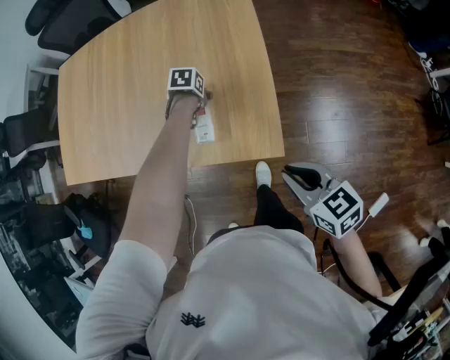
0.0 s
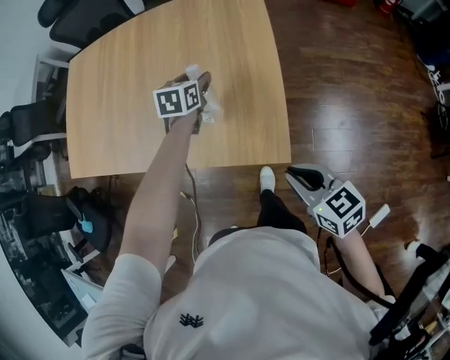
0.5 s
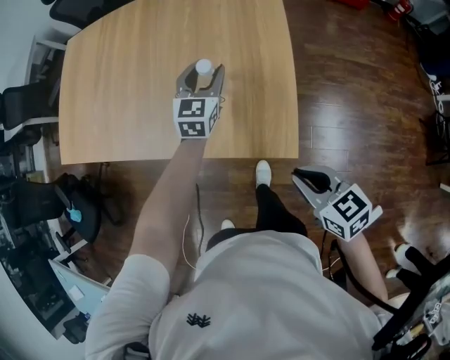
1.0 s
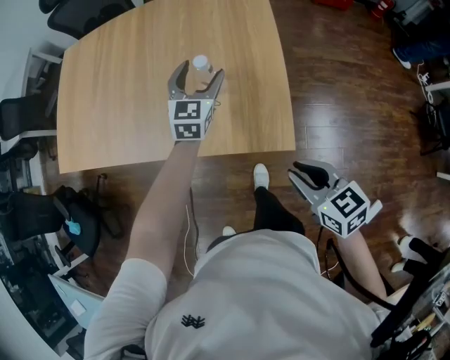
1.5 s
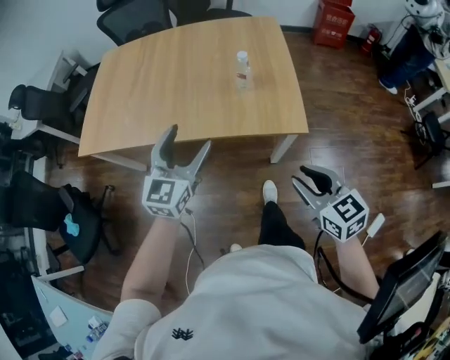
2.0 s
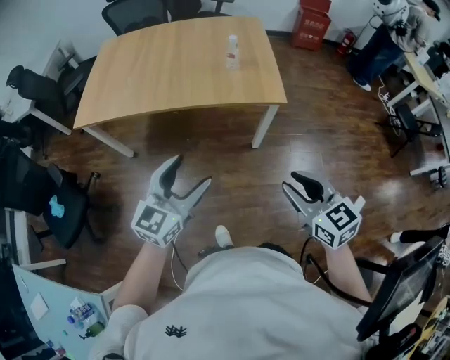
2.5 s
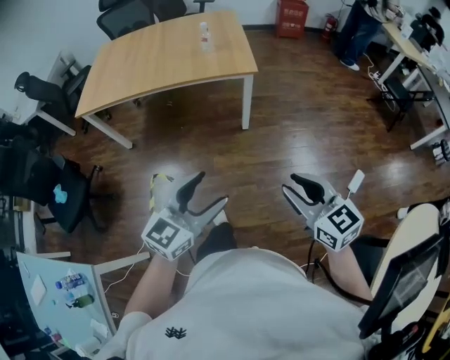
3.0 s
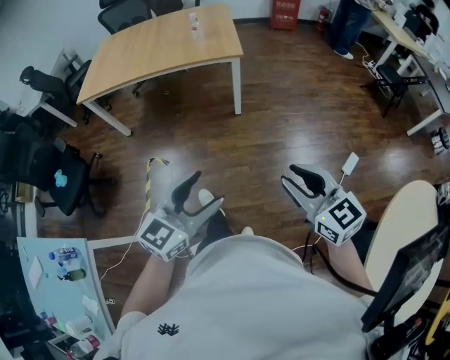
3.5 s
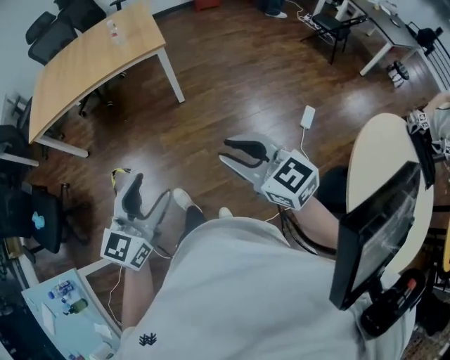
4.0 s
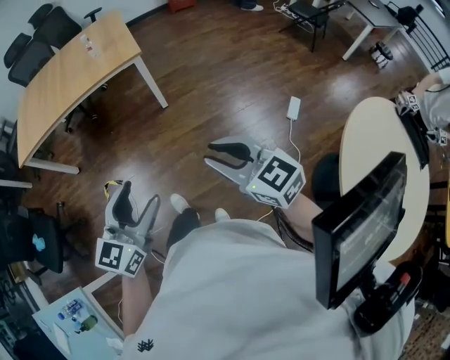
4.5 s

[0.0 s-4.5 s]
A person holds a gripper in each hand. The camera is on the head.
0.0 to 2.0 s: The left gripper changes place by approximately 40 cm, and tips its fingers upward by roughly 70 degrees. The right gripper moves approximately 15 cm, and opens up.
2.0 to 4.5 s: The pair of grippers is taken backward, roughly 50 cm. The left gripper rotates about 30 degrees.

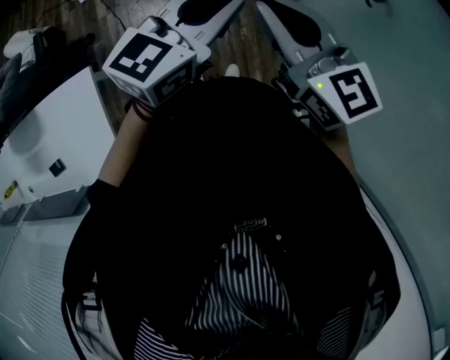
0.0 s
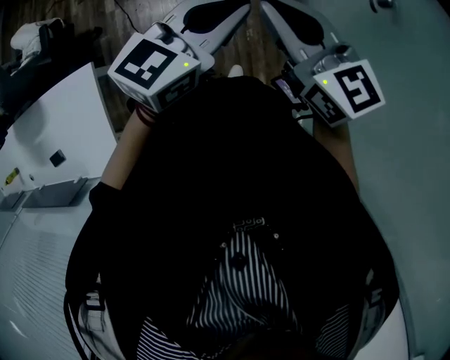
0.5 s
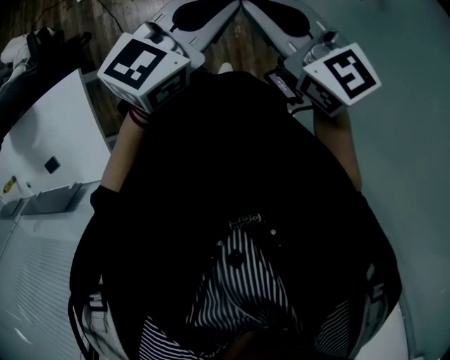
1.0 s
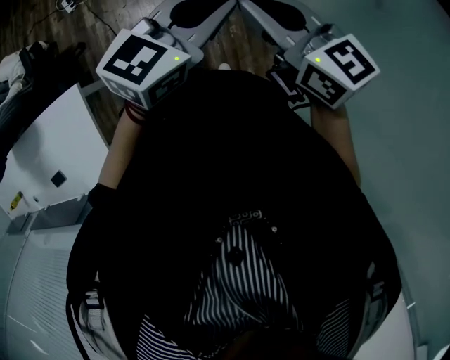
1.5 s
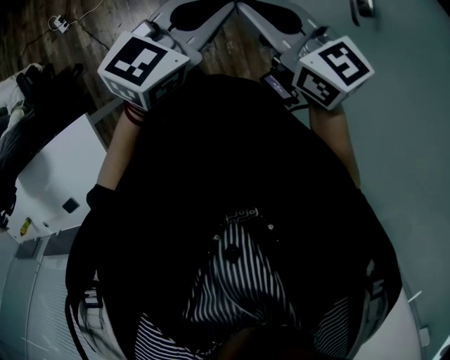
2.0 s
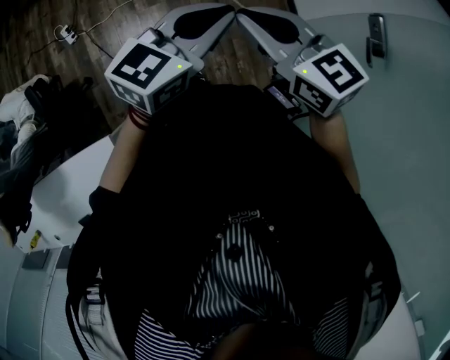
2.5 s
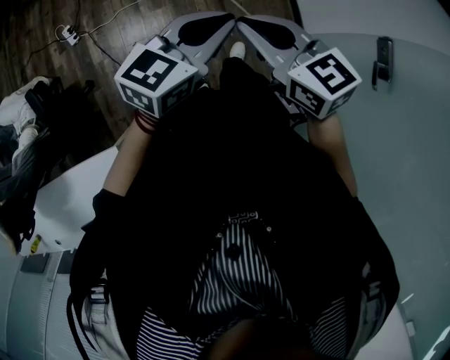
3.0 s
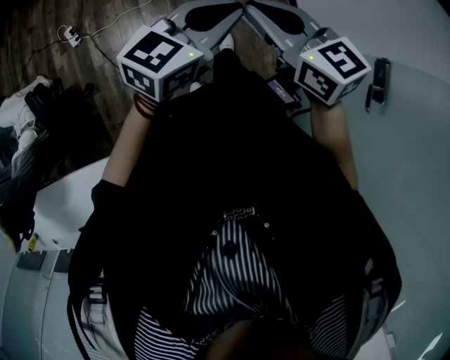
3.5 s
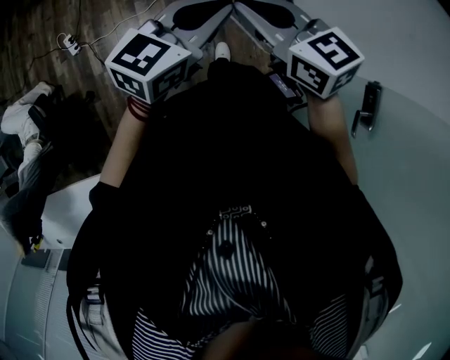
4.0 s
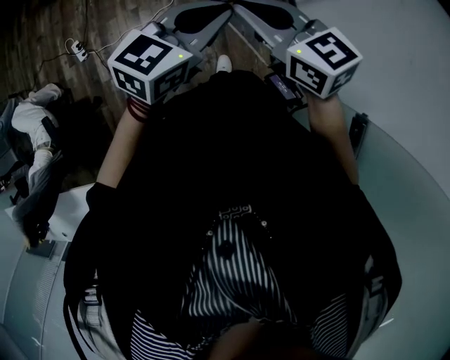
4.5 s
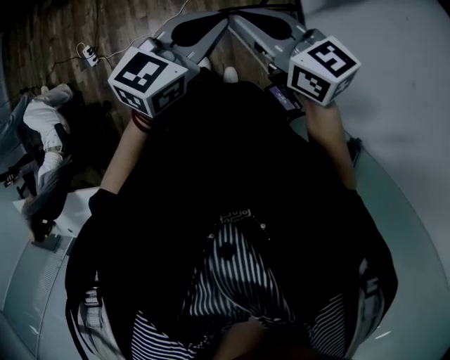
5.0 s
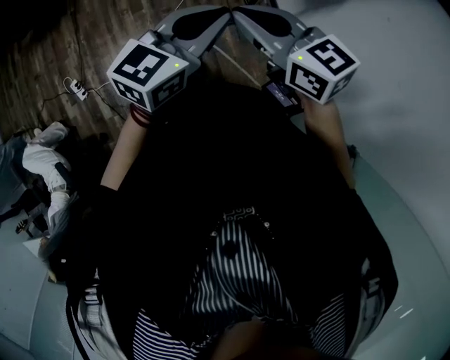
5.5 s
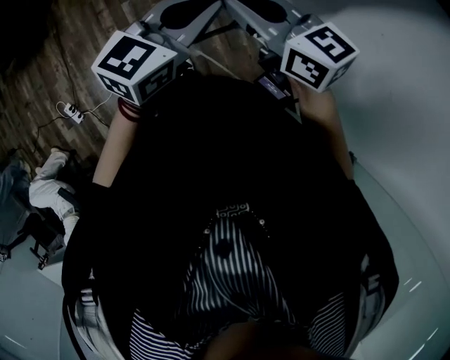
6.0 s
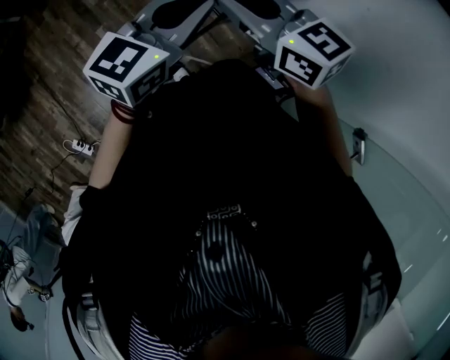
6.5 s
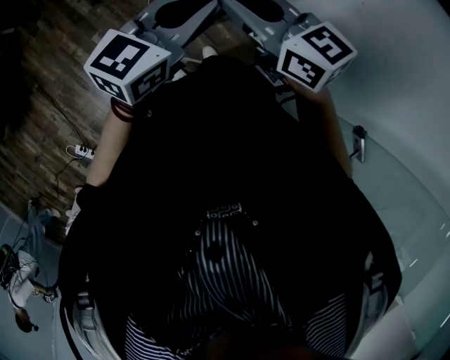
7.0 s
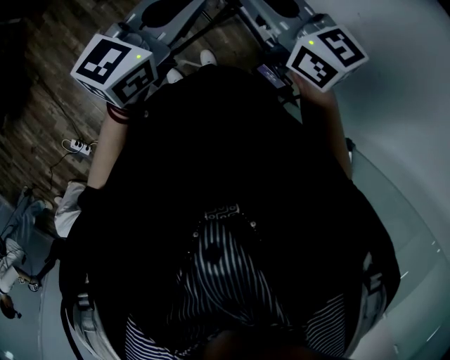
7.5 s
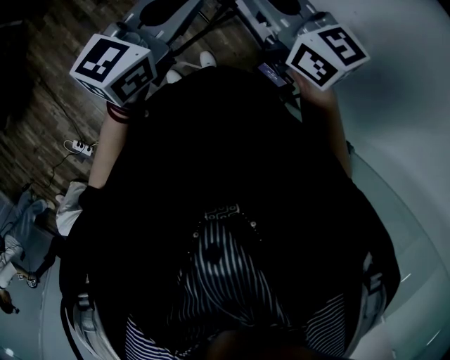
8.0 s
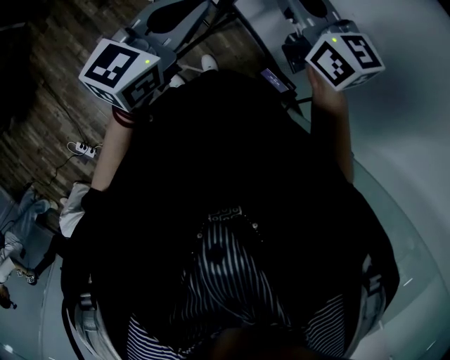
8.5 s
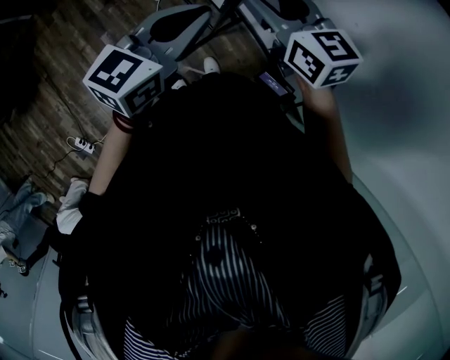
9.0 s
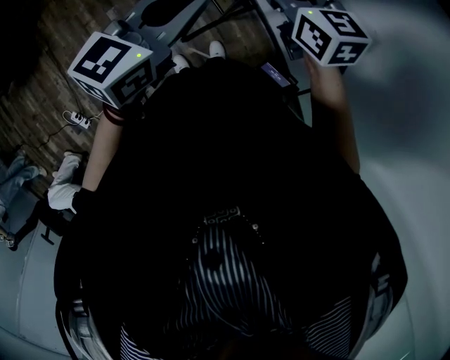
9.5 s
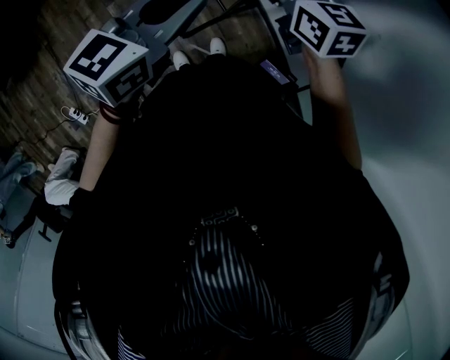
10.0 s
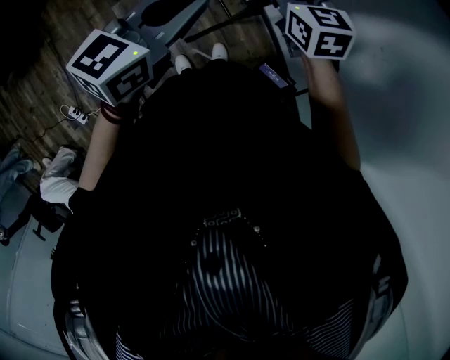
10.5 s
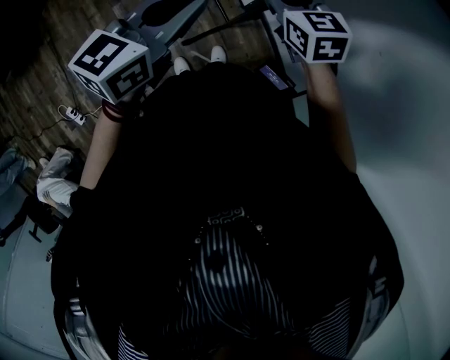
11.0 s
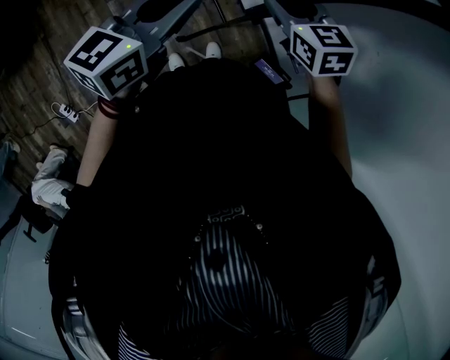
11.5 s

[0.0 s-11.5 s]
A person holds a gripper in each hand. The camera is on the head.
0.0 to 2.0 s: The grippers make only small movements.
2.0 to 4.0 s: The grippers both shift downward by some 5 cm.
4.0 to 6.0 s: Both grippers travel together upward, roughly 10 cm. The left gripper swivels roughly 20 degrees.
6.0 to 7.5 s: The left gripper is displaced backward and to the right by roughly 10 cm. Meanwhile the right gripper shifts roughly 15 cm to the right and backward, and swivels some 20 degrees.
7.5 to 9.5 s: The left gripper changes place by roughly 5 cm. The right gripper changes place by some 5 cm, and opens.
9.5 to 11.5 s: The right gripper goes roughly 10 cm downward. Meanwhile the left gripper changes place by approximately 5 cm.

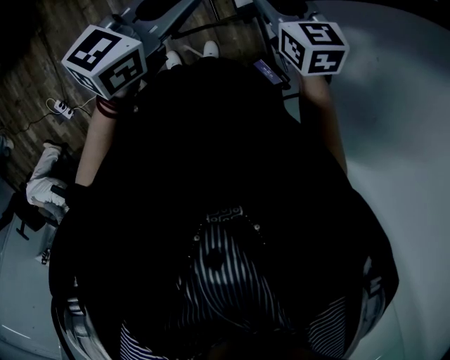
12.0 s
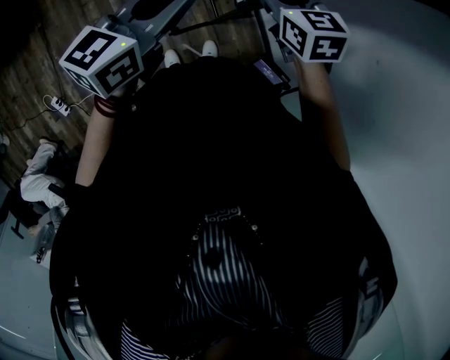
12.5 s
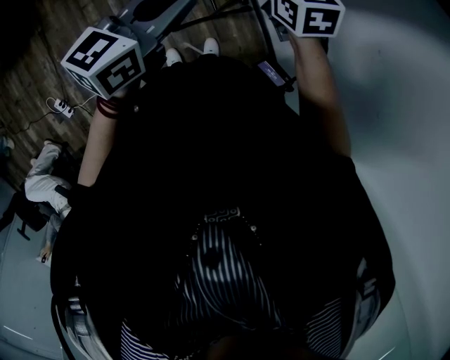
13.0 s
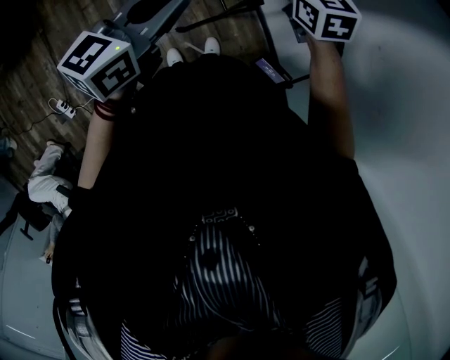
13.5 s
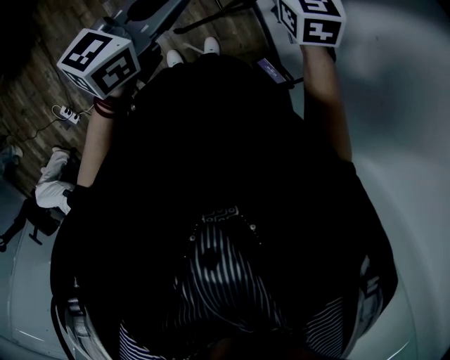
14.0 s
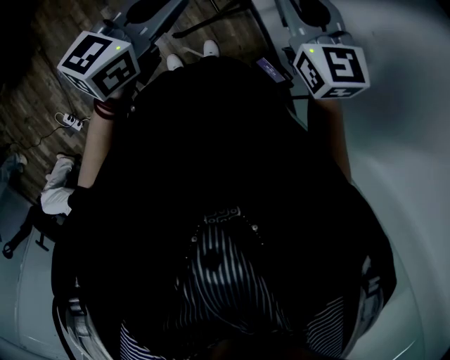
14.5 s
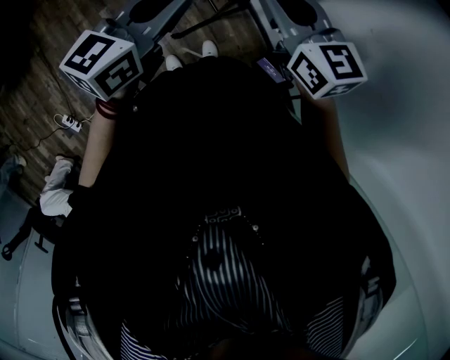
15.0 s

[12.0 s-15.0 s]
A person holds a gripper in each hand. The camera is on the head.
12.0 to 13.5 s: The right gripper shifts approximately 5 cm forward.
13.5 to 15.0 s: The right gripper moves backward and upward, some 15 cm.

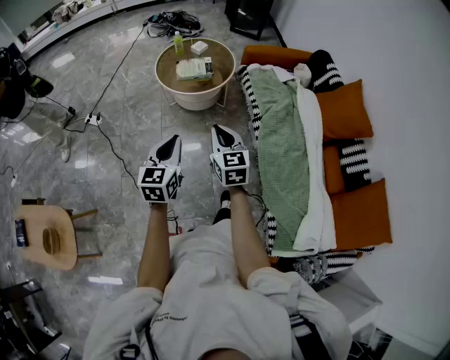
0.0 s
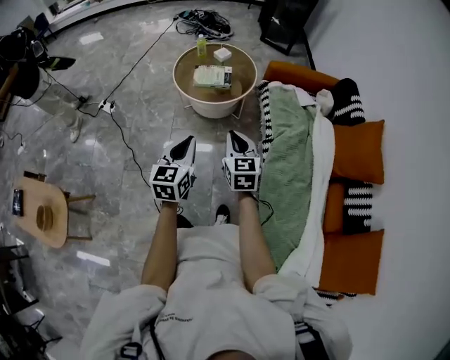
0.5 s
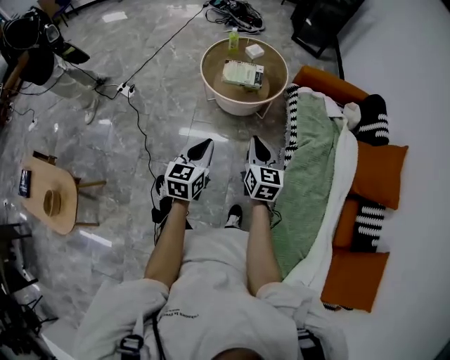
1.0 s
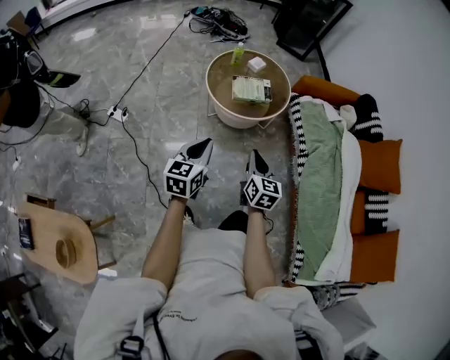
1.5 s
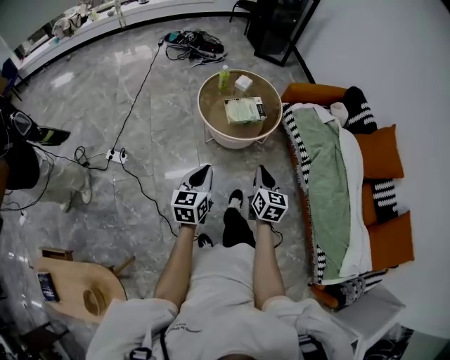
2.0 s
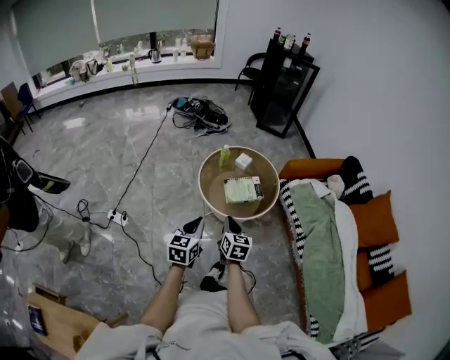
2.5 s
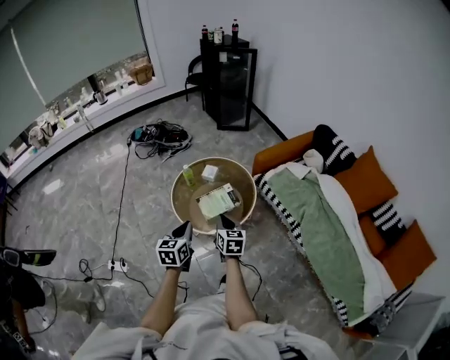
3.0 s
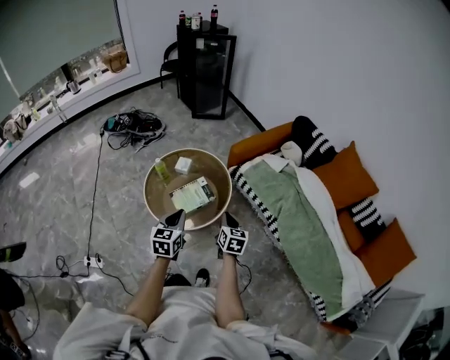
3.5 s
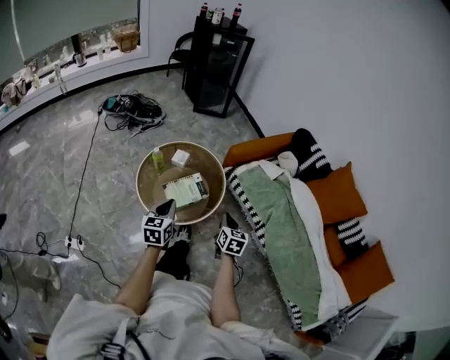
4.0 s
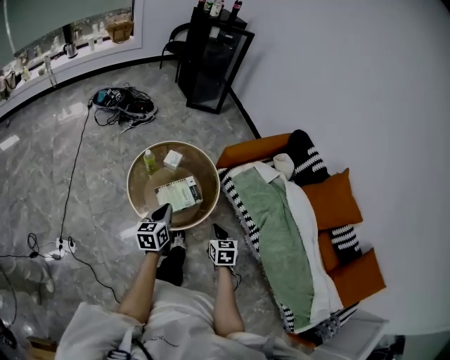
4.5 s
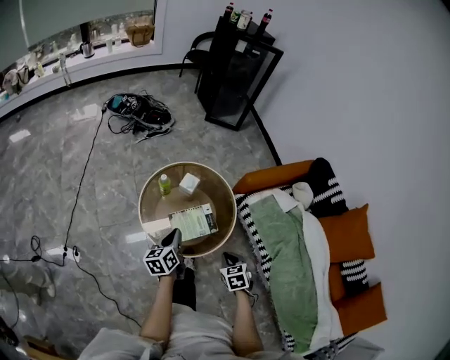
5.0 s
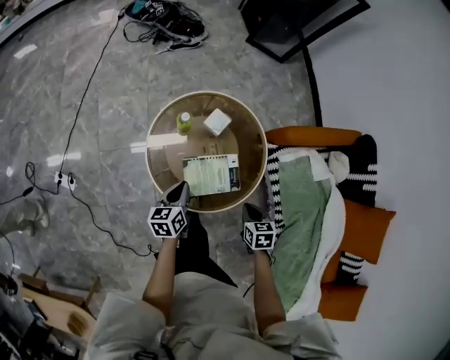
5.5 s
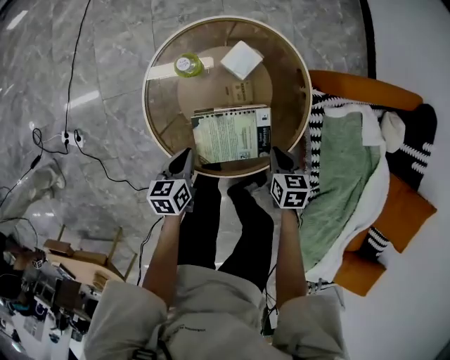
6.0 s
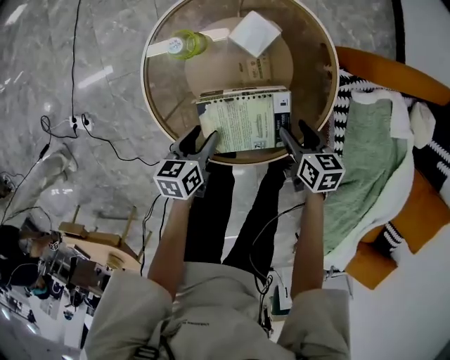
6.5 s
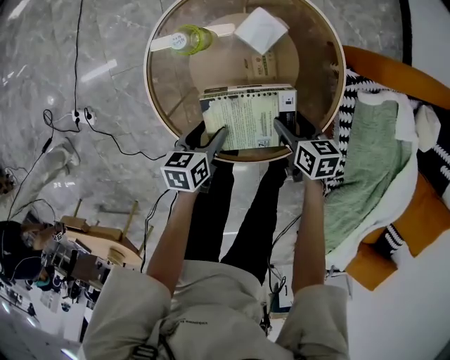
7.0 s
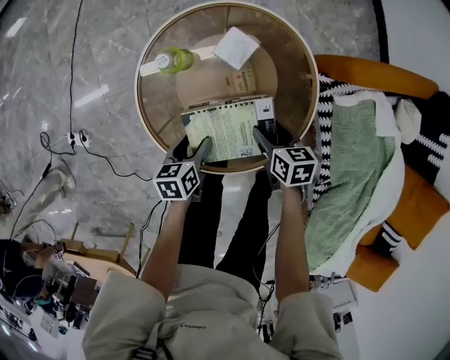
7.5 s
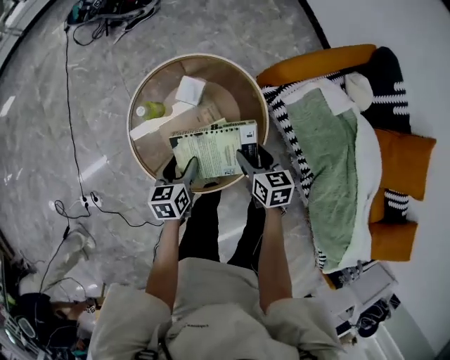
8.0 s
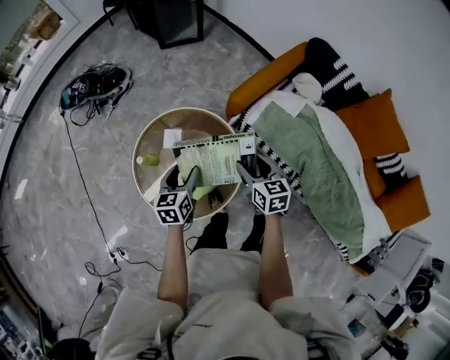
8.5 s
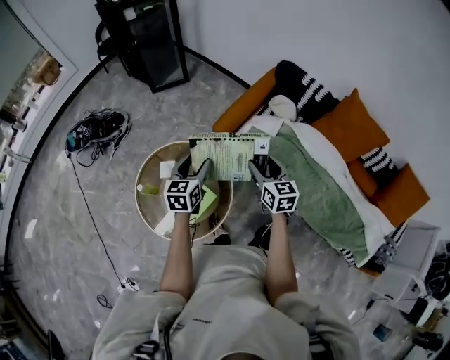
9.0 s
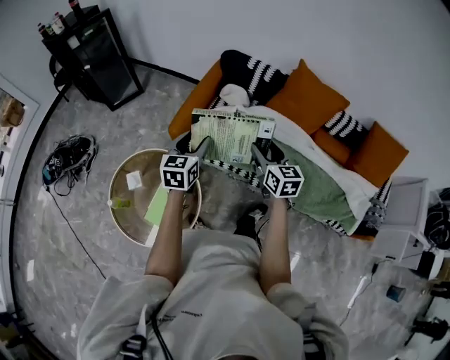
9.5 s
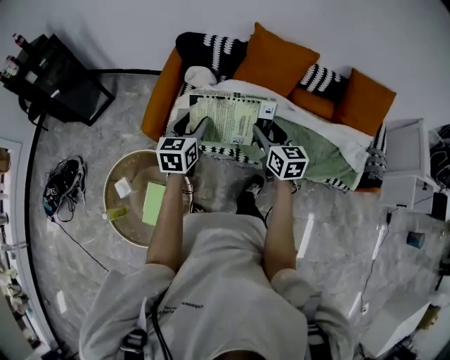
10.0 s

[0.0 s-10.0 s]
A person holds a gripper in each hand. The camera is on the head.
0.0 to 2.0 s: Both grippers travel together to the left and forward, some 30 cm. The right gripper rotates roughly 30 degrees.
2.0 to 4.0 s: Both grippers travel together forward, roughly 30 cm.
4.0 to 6.0 s: The two grippers go roughly 40 cm downward and forward. The right gripper tilts its fingers some 30 degrees downward, while the left gripper rotates about 40 degrees.
6.0 to 8.0 s: The right gripper travels upward by some 10 cm, rotates approximately 20 degrees, and opens up; the left gripper heads upward, forward and to the right, covering roughly 15 cm, rotates roughly 20 degrees, and opens its fingers.
8.0 to 10.0 s: The two grippers travel together, about 50 cm. The right gripper swivels some 60 degrees. Meanwhile the left gripper changes its angle by approximately 60 degrees.
